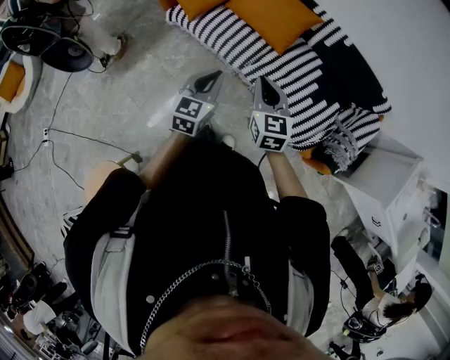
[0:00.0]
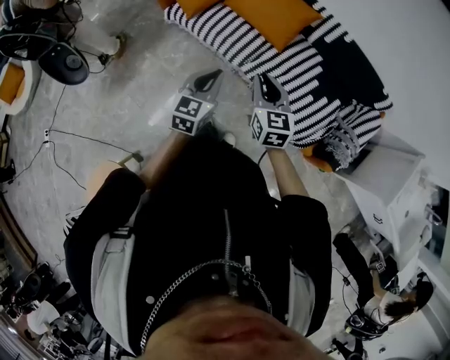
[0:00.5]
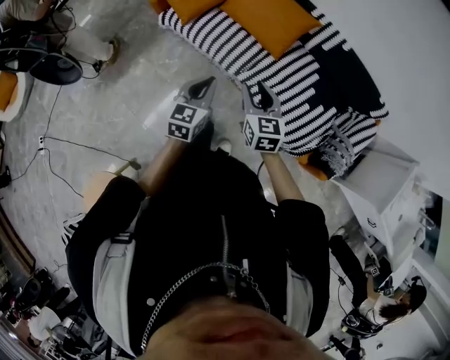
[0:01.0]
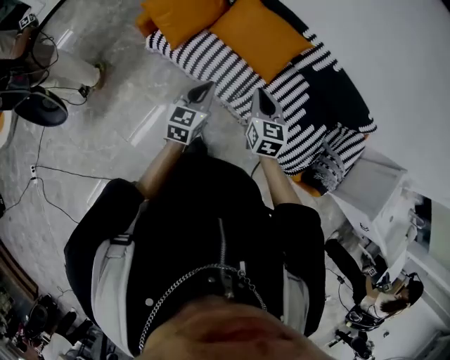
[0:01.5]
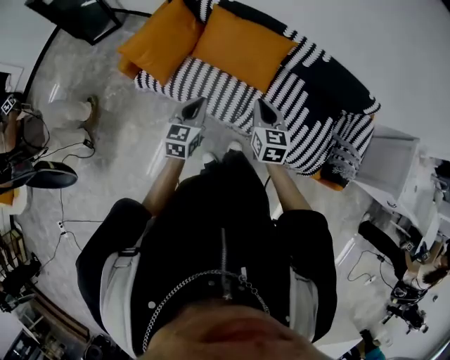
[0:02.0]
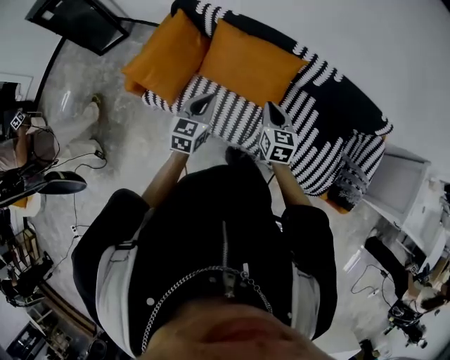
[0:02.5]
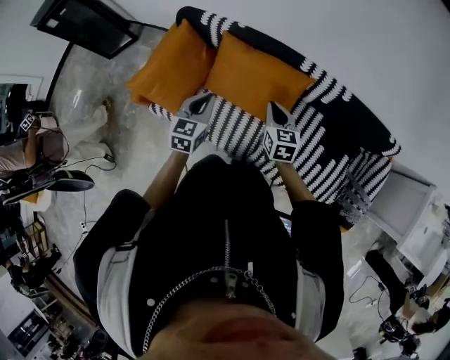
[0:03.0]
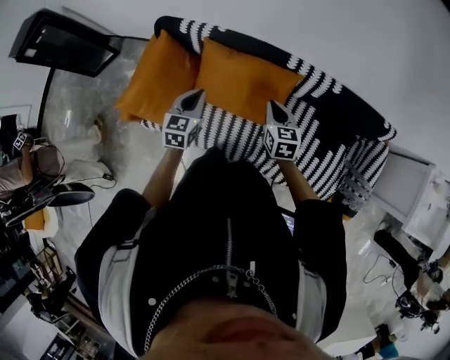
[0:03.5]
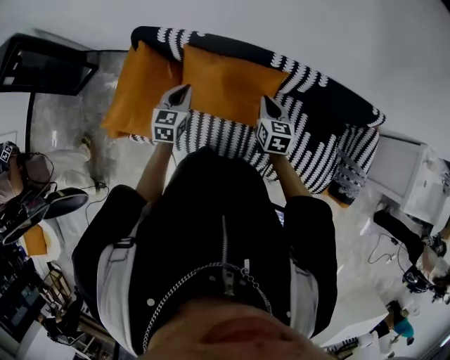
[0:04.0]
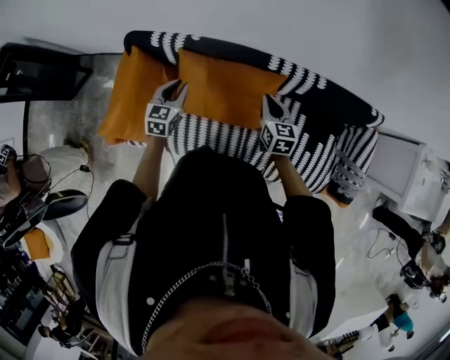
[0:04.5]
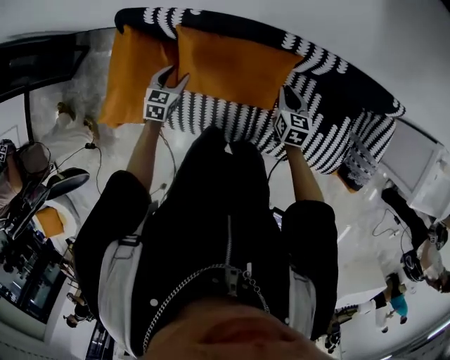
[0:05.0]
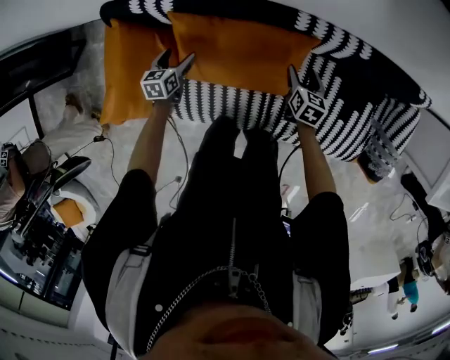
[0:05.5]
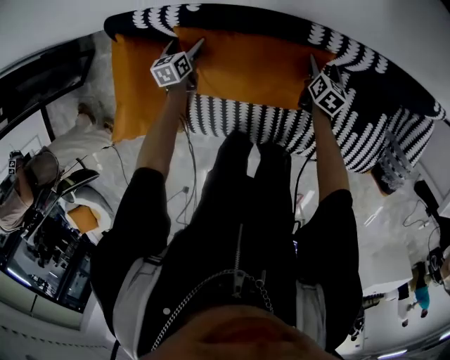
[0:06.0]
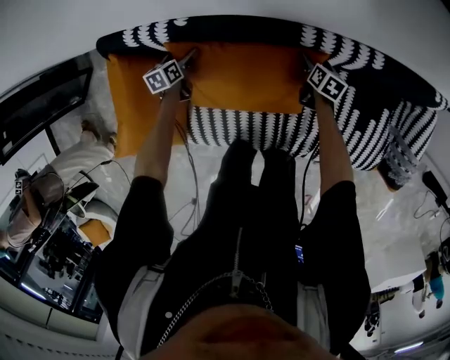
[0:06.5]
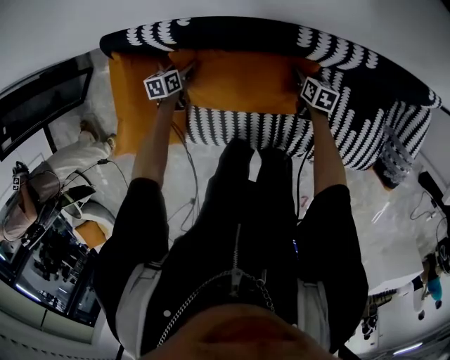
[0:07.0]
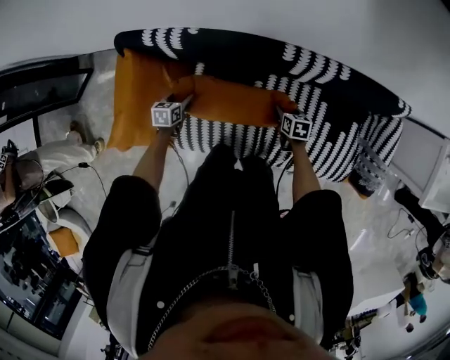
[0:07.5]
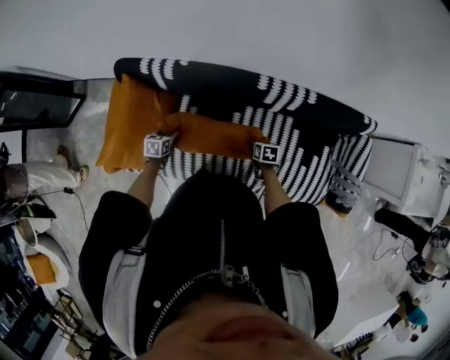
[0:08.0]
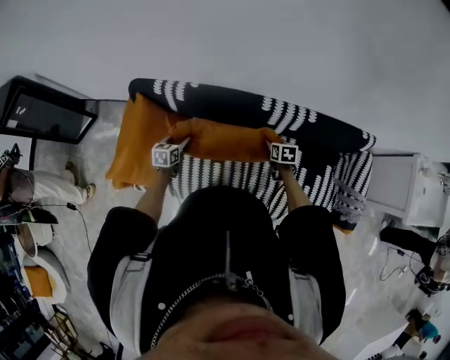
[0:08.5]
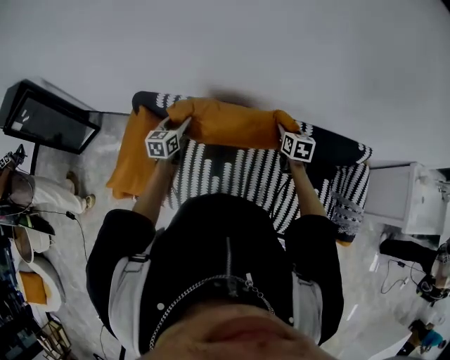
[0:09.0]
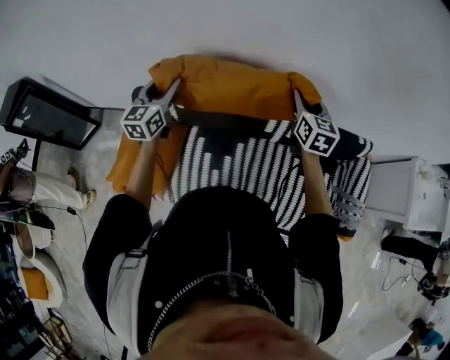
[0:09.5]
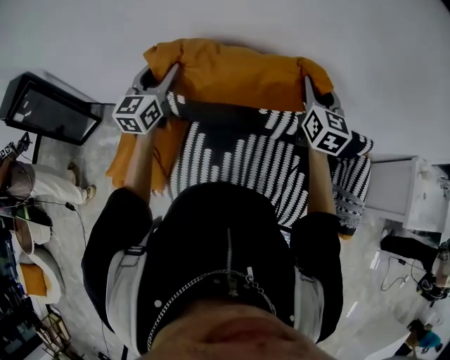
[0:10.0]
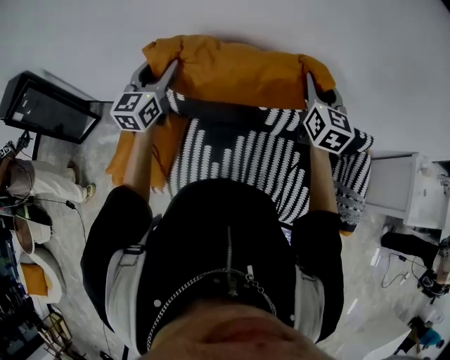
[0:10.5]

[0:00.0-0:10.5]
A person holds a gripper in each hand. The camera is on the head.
0:00.0 to 0:02.0: The grippers both shift forward by some 25 cm. The right gripper changes its angle by about 20 degrees.
0:02.0 to 0:04.0: Both grippers travel together forward, approximately 40 cm.
0:04.0 to 0:06.5: The grippers both shift downward and forward by about 40 cm. The right gripper turns by approximately 40 degrees, and opens up. Meanwhile the left gripper changes its angle by approximately 40 degrees, and opens up.
0:06.5 to 0:08.5: The left gripper heads backward and upward, covering roughly 25 cm, and closes its fingers, while the right gripper travels upward and backward by roughly 25 cm, turns by roughly 30 degrees, and closes.
0:08.5 to 0:10.5: Both grippers travel together upward, roughly 40 cm. The right gripper points its fingers about 50 degrees further upward. The left gripper tilts its fingers approximately 40 degrees upward.

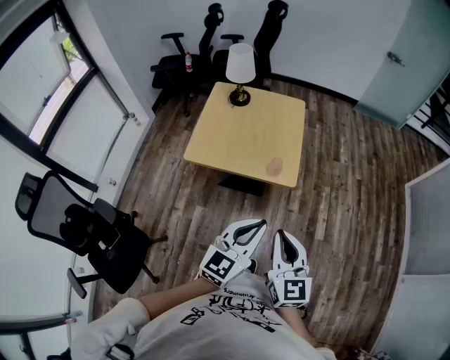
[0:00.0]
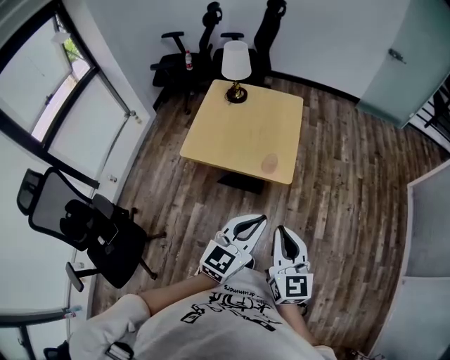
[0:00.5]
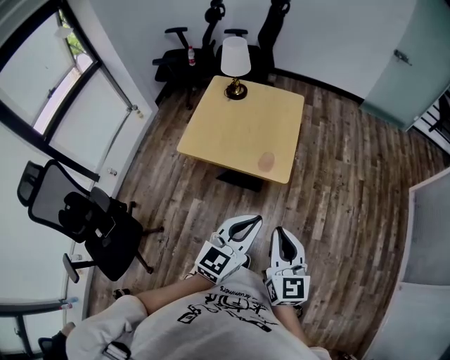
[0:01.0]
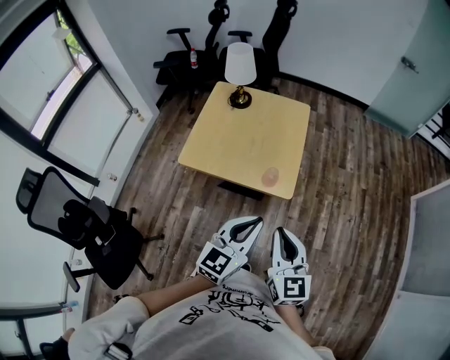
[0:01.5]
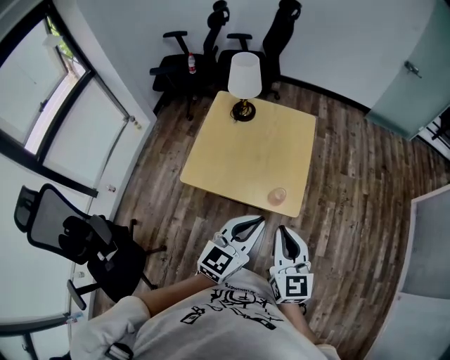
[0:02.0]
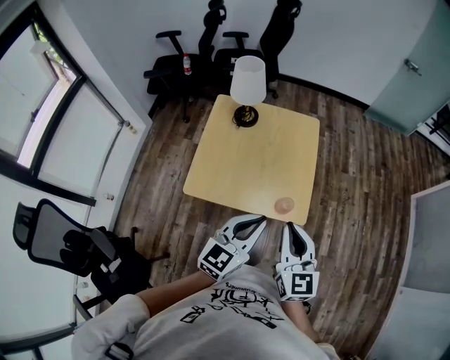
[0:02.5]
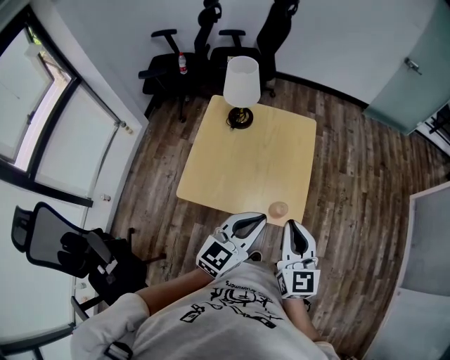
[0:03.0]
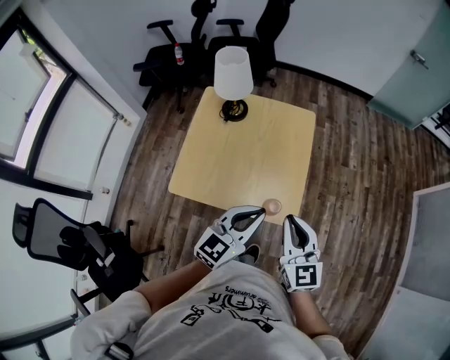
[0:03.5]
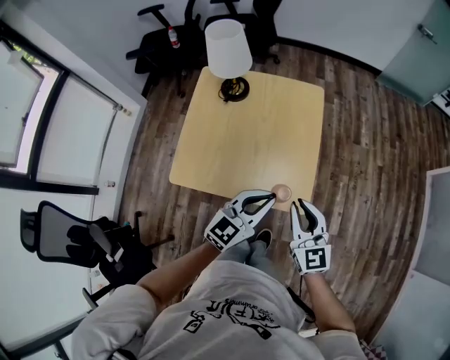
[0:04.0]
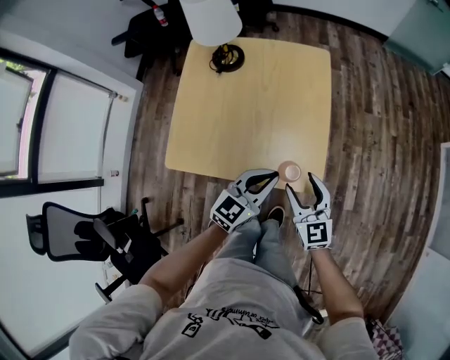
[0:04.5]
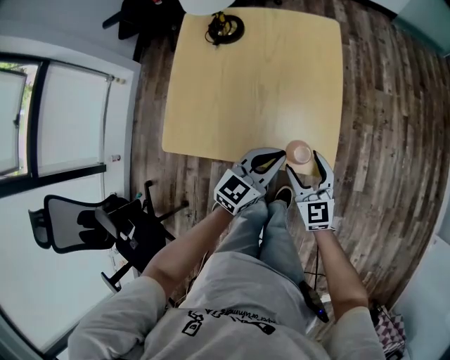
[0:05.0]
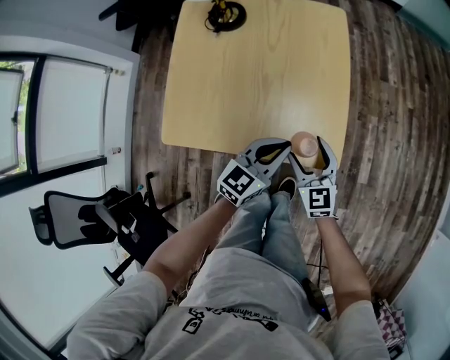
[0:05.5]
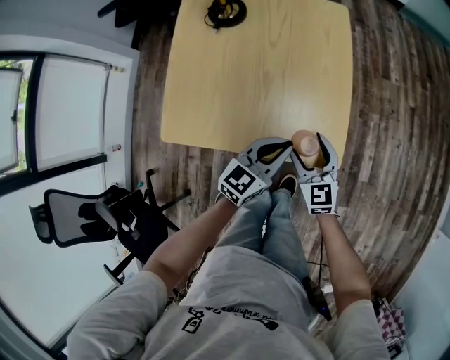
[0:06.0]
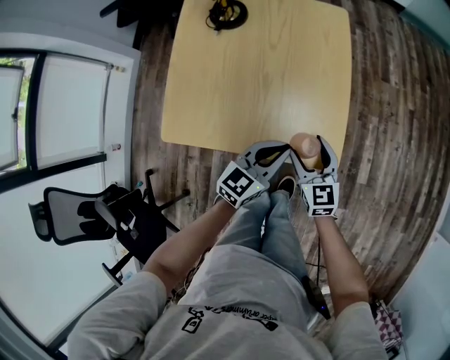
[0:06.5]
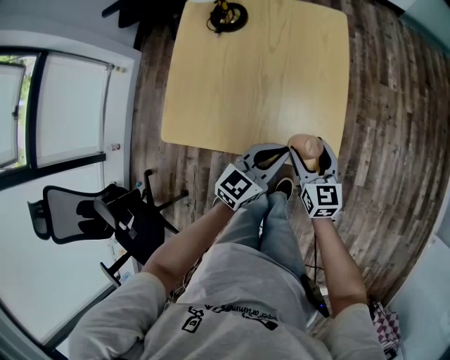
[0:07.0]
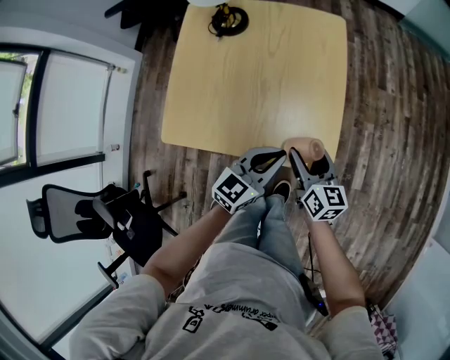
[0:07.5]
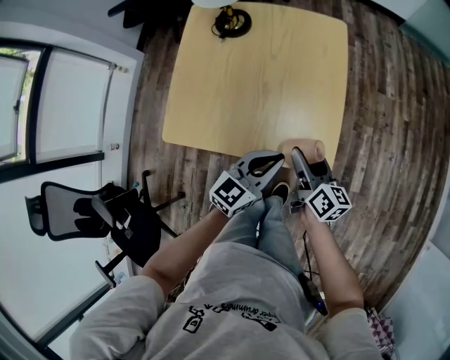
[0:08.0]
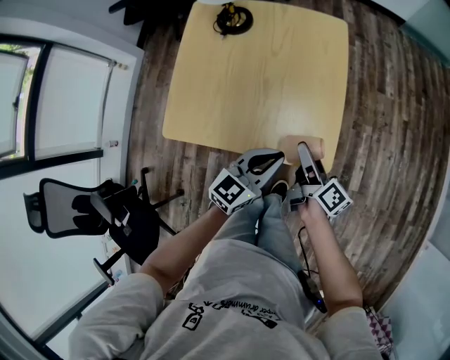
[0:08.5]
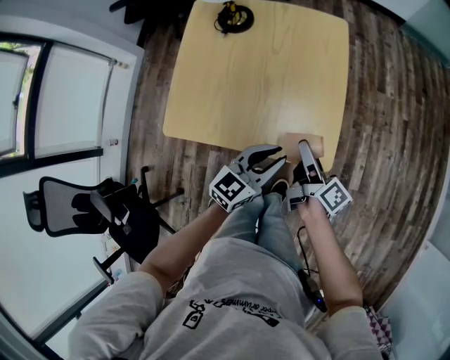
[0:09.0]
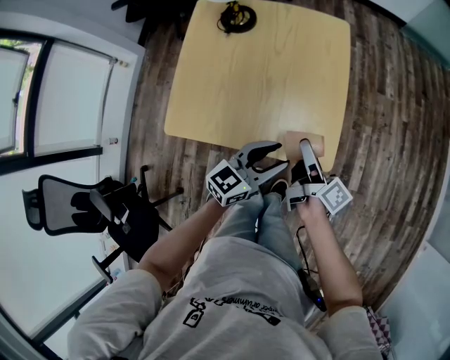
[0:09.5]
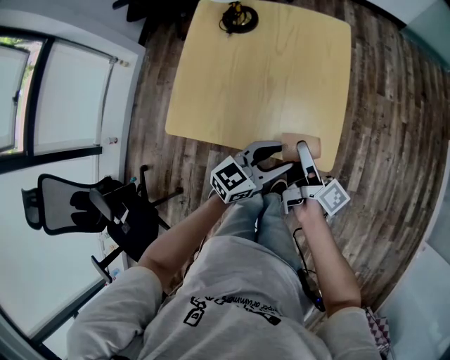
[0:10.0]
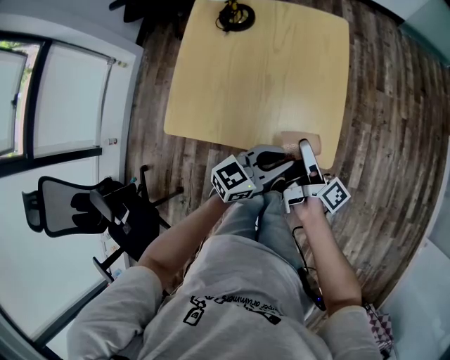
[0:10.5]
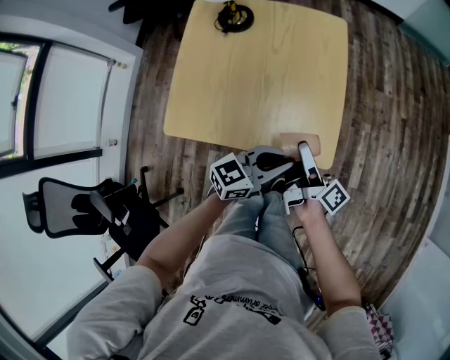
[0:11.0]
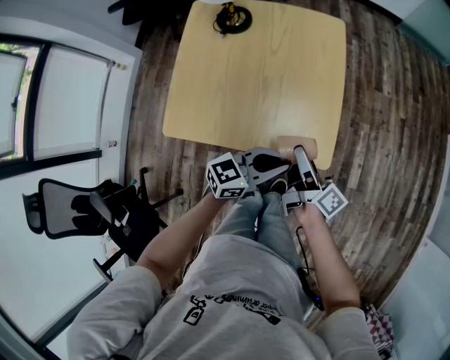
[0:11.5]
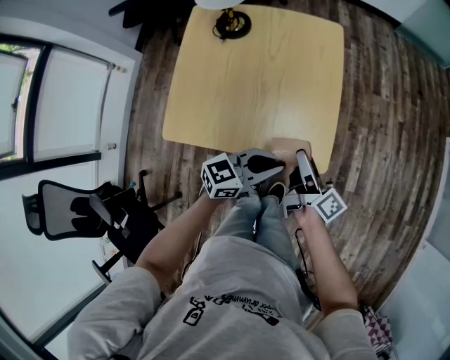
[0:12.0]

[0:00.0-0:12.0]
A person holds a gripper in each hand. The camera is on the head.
0:00.0 to 0:02.0: Both grippers move forward, roughly 15 cm.
0:02.0 to 0:04.0: The two grippers go some 20 cm forward and downward.
0:04.0 to 0:06.0: The two grippers go about 20 cm downward. The right gripper opens.
0:06.0 to 0:08.0: The right gripper moves about 5 cm, and twists some 50 degrees clockwise, seen from behind.
0:08.0 to 0:10.0: The right gripper swivels approximately 30 degrees, while the left gripper opens its fingers.
0:10.0 to 0:12.0: The left gripper closes.

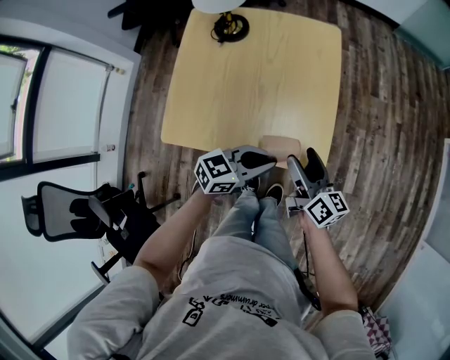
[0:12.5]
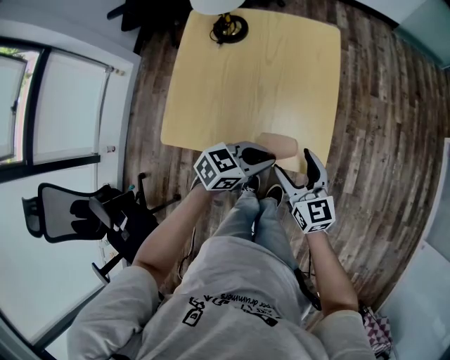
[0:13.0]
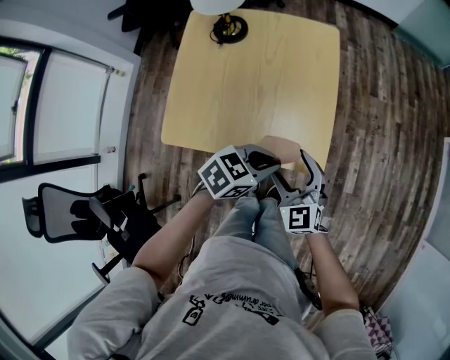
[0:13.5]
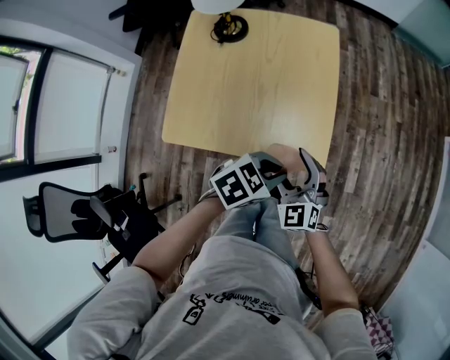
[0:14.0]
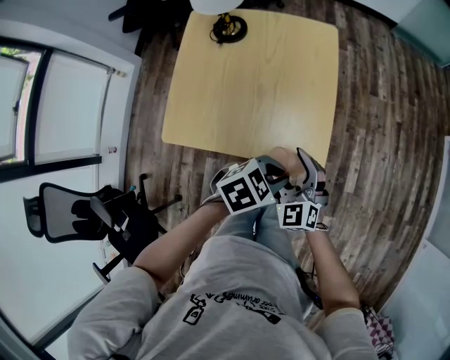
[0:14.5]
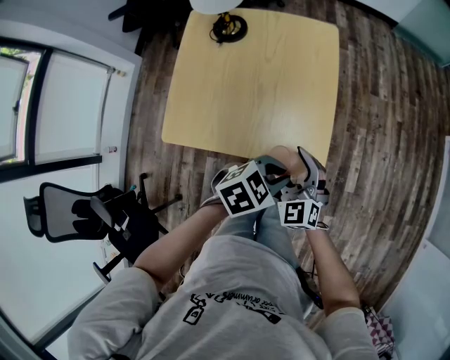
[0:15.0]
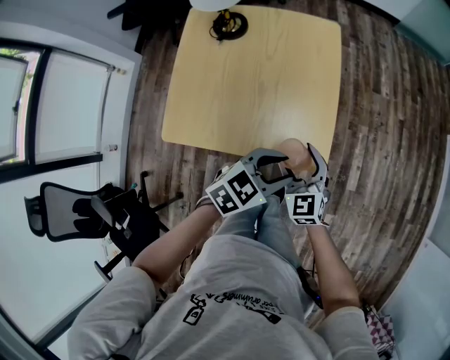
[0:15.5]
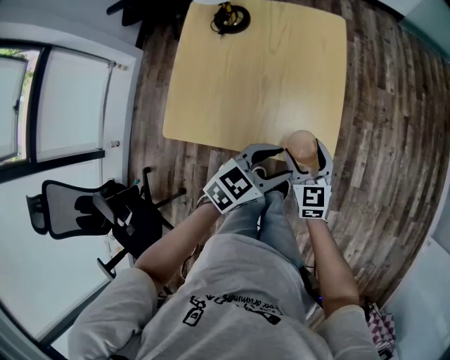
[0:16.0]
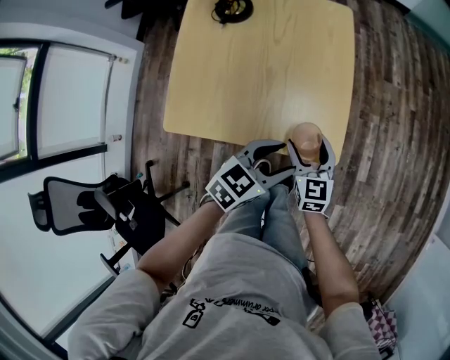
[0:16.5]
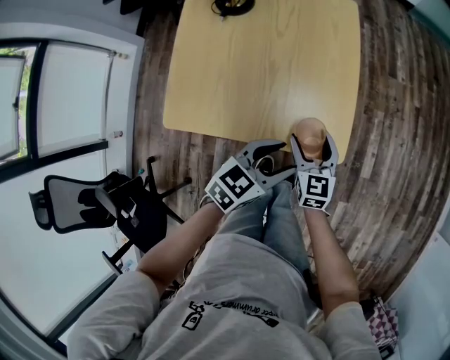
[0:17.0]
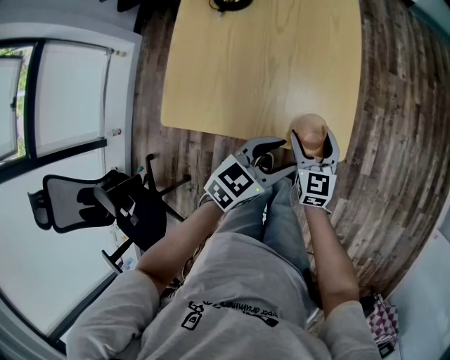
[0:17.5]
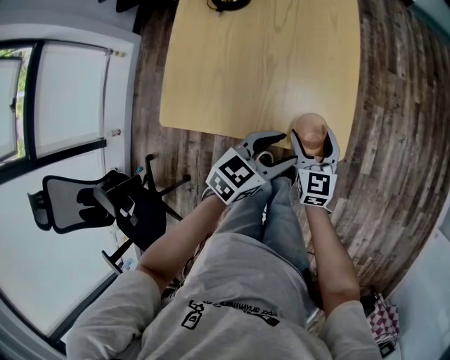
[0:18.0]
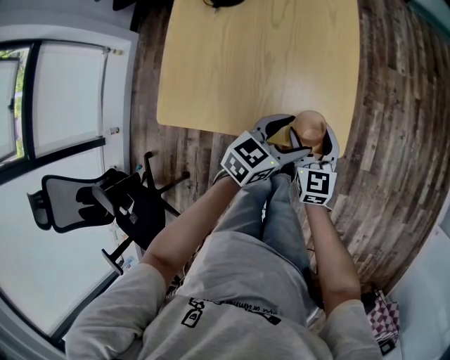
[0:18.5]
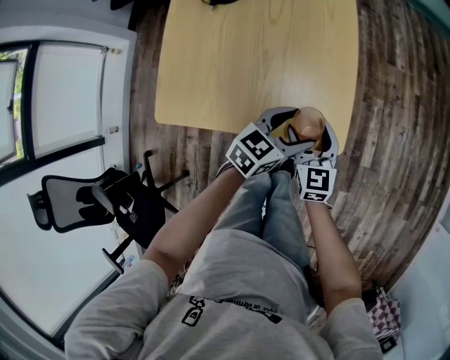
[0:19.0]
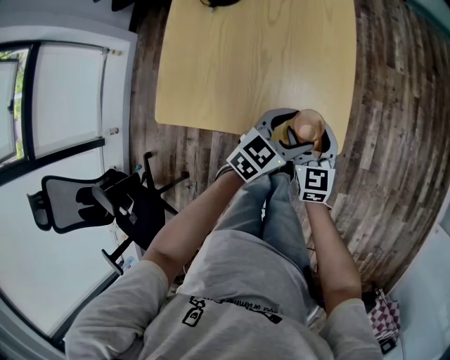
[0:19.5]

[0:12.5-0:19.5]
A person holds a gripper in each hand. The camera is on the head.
0:12.5 to 0:14.5: The left gripper travels to the right by approximately 5 cm, and points its fingers about 30 degrees further downward. Meanwhile the right gripper travels backward by roughly 5 cm, and twists approximately 70 degrees counterclockwise, seen from behind.
0:14.5 to 0:16.0: The right gripper ends up approximately 5 cm from where it was, and swivels roughly 30 degrees. The left gripper rotates roughly 20 degrees, and opens its fingers.
0:16.0 to 0:17.5: There are only small adjustments of the grippers.
0:17.5 to 0:19.5: The left gripper shifts about 5 cm forward.
